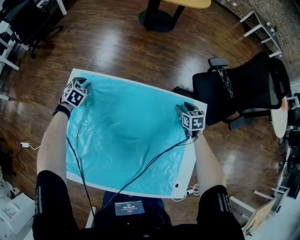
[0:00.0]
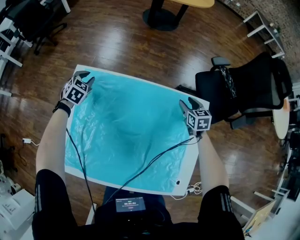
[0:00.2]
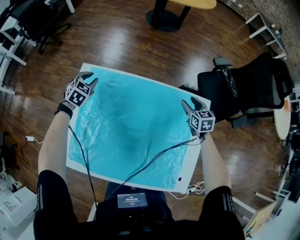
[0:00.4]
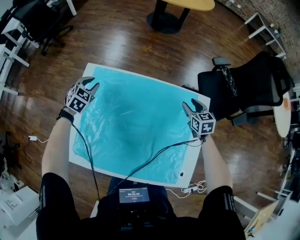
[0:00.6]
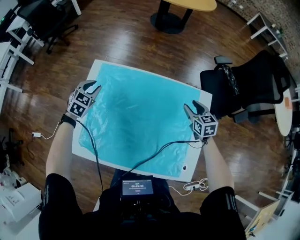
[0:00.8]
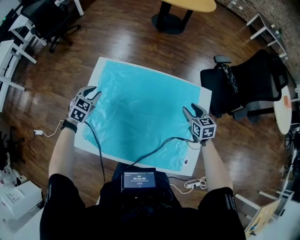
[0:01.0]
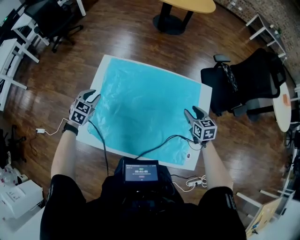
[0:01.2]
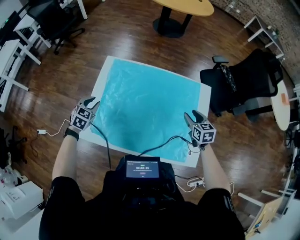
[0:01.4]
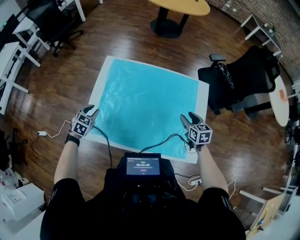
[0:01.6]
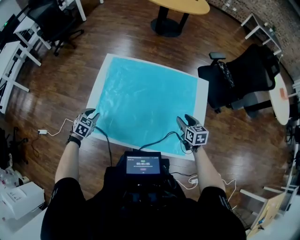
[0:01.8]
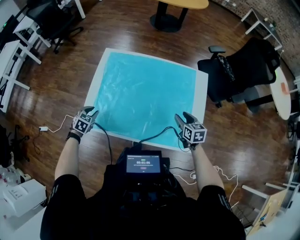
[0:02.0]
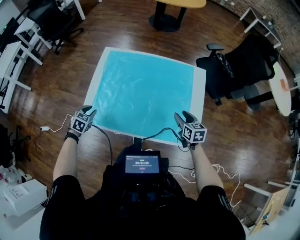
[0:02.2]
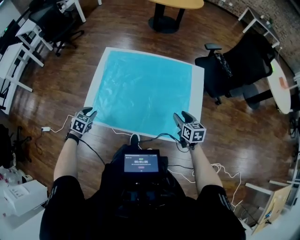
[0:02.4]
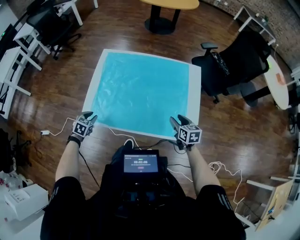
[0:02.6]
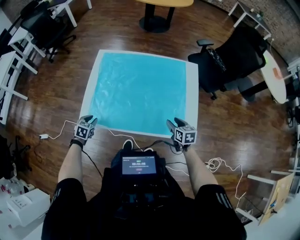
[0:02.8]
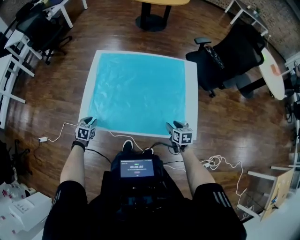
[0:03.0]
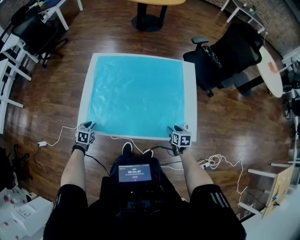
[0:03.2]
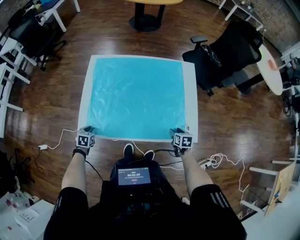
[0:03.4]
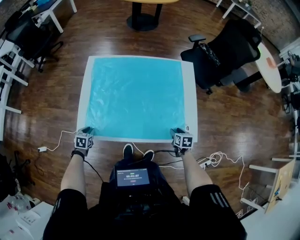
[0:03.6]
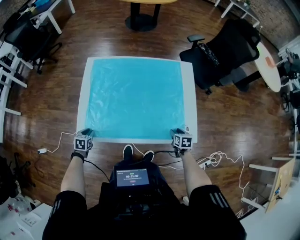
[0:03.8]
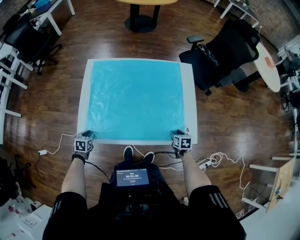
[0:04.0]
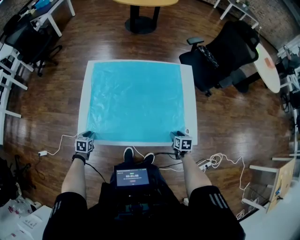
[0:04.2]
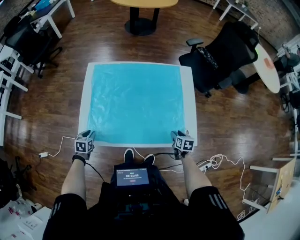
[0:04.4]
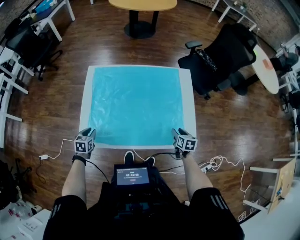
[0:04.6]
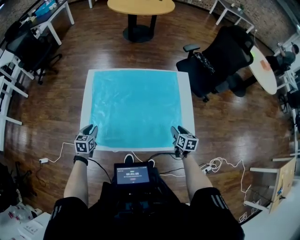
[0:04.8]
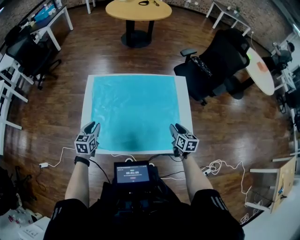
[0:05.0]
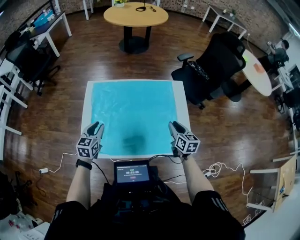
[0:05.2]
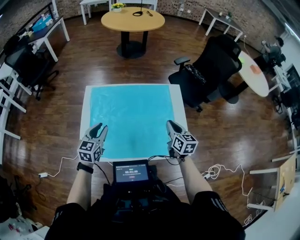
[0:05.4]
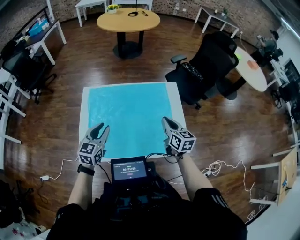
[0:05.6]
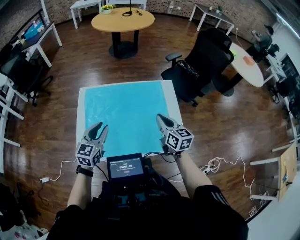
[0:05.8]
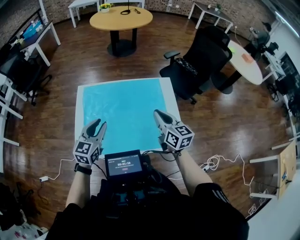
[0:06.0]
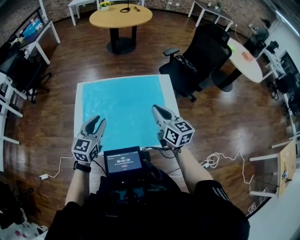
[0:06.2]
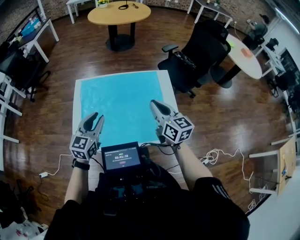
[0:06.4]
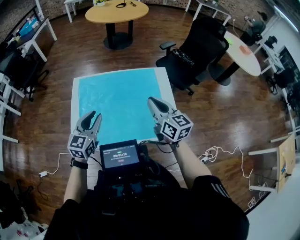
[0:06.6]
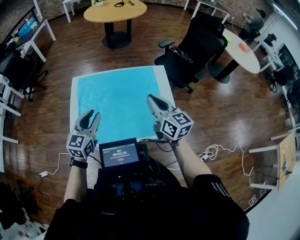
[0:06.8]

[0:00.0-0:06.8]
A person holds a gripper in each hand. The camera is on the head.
0:00.0 to 0:01.4: Both grippers travel together backward and upward, approximately 30 cm.
0:01.4 to 0:02.8: The right gripper travels backward by some 20 cm; the left gripper goes approximately 20 cm backward and downward.
0:02.8 to 0:04.0: The right gripper heads downward and to the right, covering about 10 cm, and turns by about 20 degrees, while the left gripper is displaced downward by roughly 5 cm.
0:04.0 to 0:05.4: The left gripper shifts roughly 30 cm upward, to the right and forward, and angles its fingers upward, by roughly 40 degrees; the right gripper moves upward, roughly 30 cm, points its fingers about 40 degrees further upward, and closes up.
0:05.4 to 0:06.8: The left gripper shifts approximately 10 cm upward, to the right and backward, while the right gripper heads upward, covering some 15 cm.

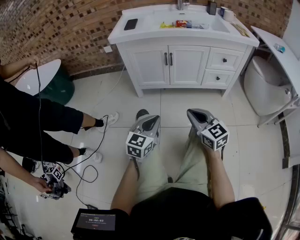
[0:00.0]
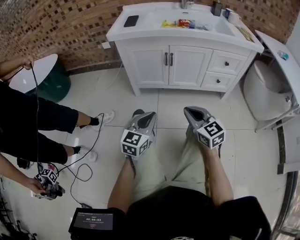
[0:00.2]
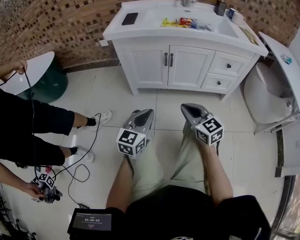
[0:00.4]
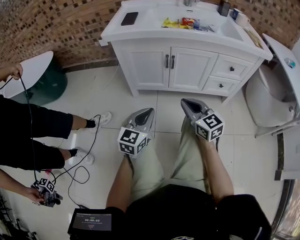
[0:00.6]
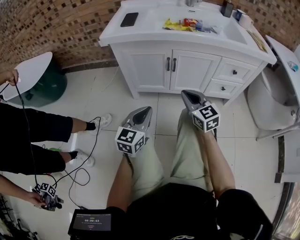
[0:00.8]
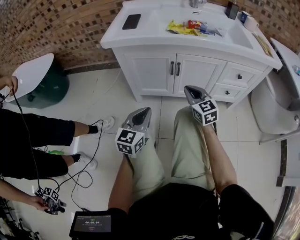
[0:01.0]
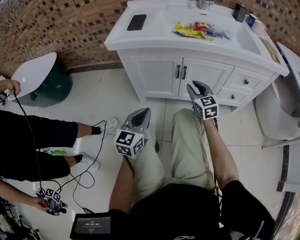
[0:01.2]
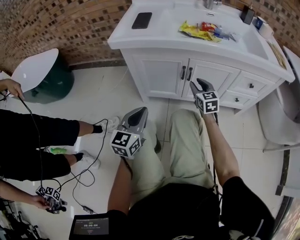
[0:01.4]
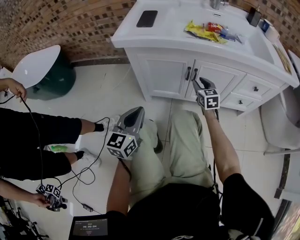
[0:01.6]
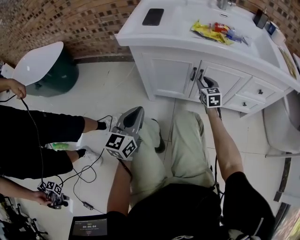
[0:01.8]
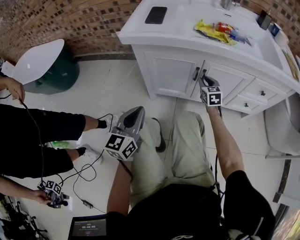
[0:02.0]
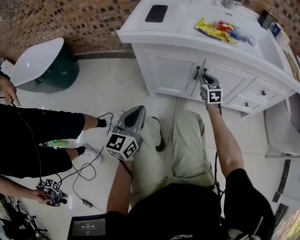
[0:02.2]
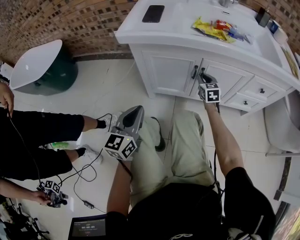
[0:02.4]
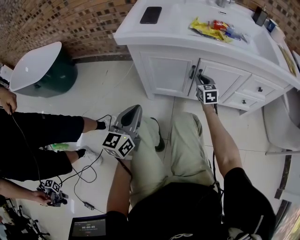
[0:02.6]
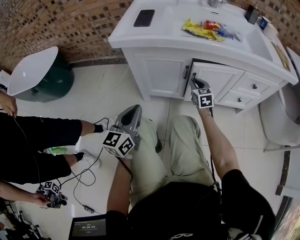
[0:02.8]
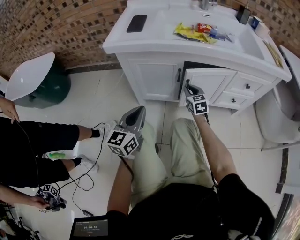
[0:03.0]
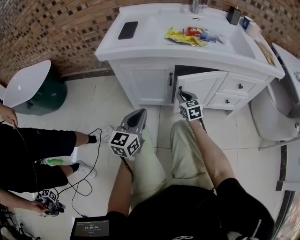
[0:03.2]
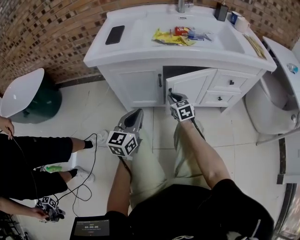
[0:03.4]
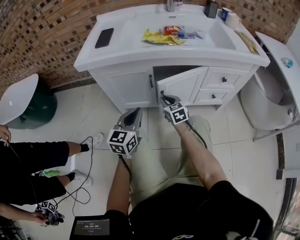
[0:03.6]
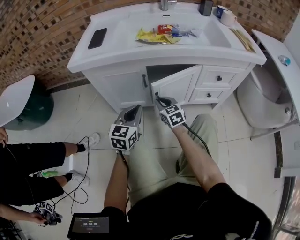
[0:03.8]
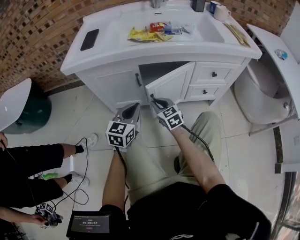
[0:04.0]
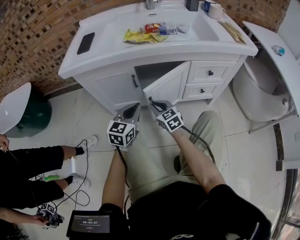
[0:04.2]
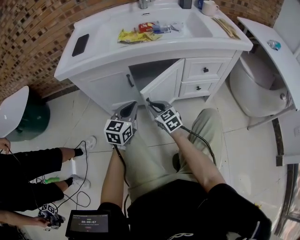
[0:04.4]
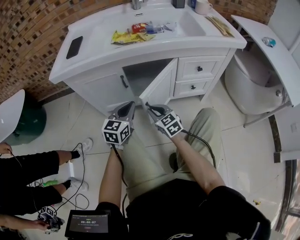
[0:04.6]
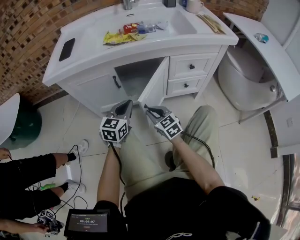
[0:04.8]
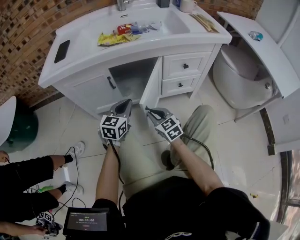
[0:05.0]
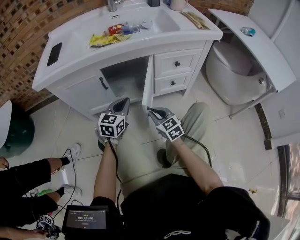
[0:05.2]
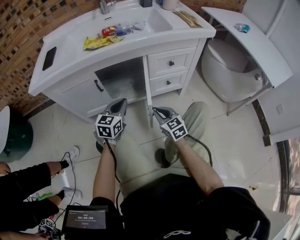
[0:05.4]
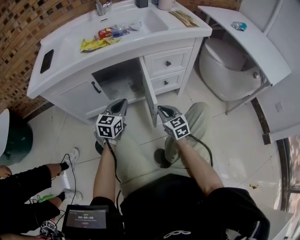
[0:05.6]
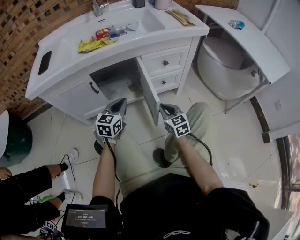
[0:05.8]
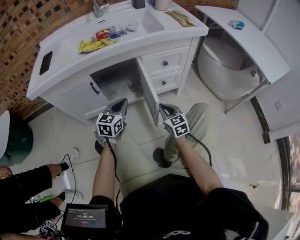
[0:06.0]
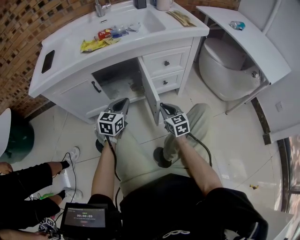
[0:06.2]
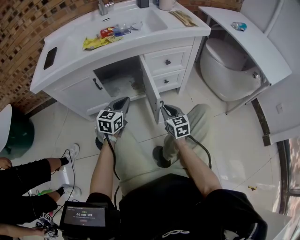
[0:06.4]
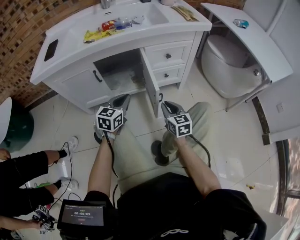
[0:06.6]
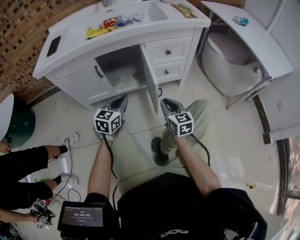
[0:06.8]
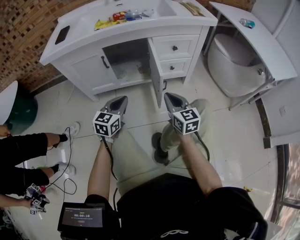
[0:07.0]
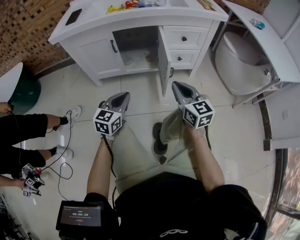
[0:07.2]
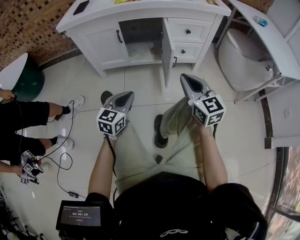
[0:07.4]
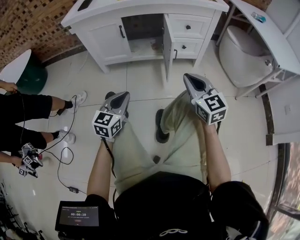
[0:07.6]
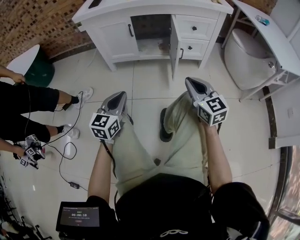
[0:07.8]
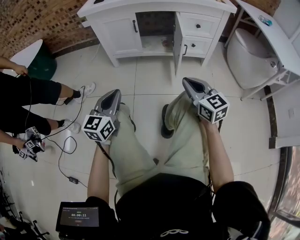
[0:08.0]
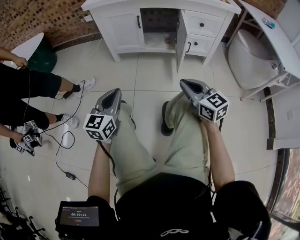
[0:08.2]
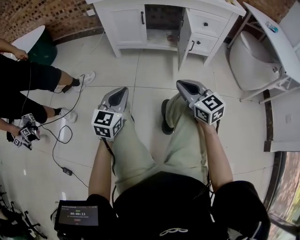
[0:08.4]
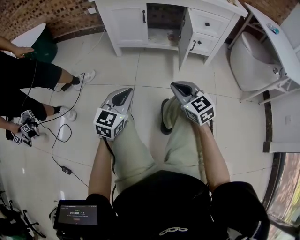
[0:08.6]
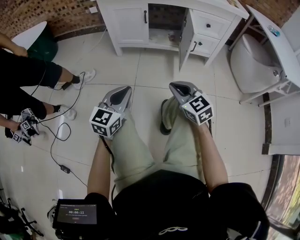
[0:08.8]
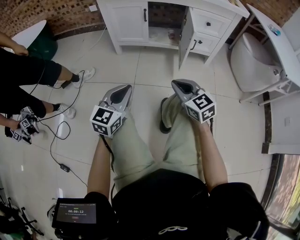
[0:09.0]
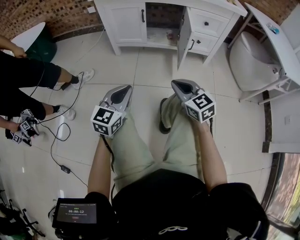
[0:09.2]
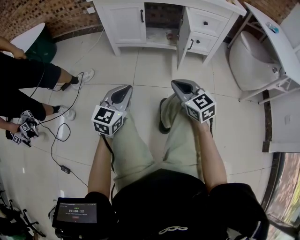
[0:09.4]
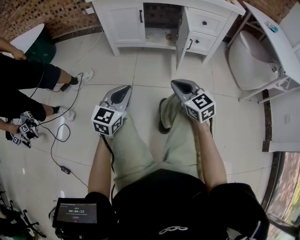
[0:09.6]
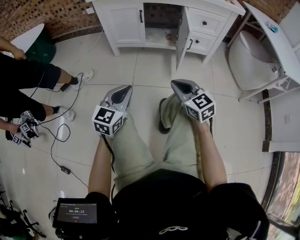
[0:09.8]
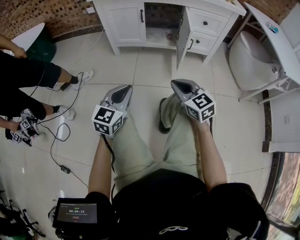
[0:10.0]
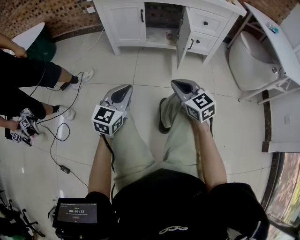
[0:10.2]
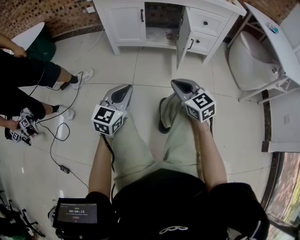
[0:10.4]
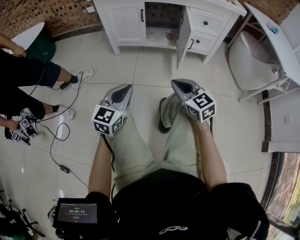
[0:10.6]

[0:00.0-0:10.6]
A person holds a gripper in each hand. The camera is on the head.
0:00.0 to 0:01.6: The right gripper goes about 40 cm forward, and opens, while the left gripper heads forward and to the left, covering approximately 25 cm.
0:01.6 to 0:03.0: The right gripper closes up.
0:03.0 to 0:04.6: The right gripper moves backward and to the right, about 15 cm; the left gripper goes roughly 20 cm to the right, and swivels roughly 20 degrees.
0:04.6 to 0:06.0: The right gripper travels to the right by approximately 20 cm, and rotates roughly 20 degrees, while the left gripper shifts some 10 cm to the right.
0:06.0 to 0:07.6: The left gripper shifts about 35 cm backward; the right gripper is displaced backward and upward by approximately 30 cm, and turns by some 20 degrees.
0:07.6 to 0:09.0: The right gripper shifts roughly 15 cm to the left, downward and backward, and swivels some 20 degrees; the left gripper goes roughly 10 cm backward and to the left.
0:09.0 to 0:10.6: The two grippers keep their place.

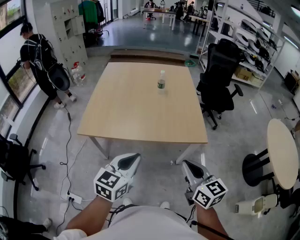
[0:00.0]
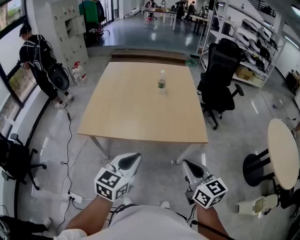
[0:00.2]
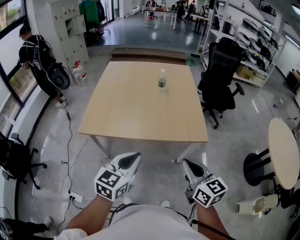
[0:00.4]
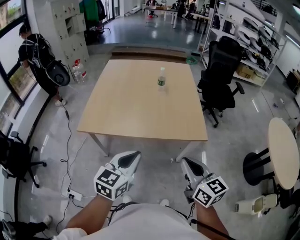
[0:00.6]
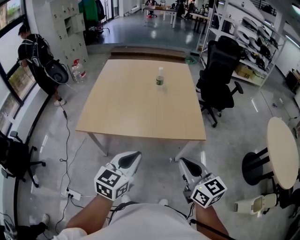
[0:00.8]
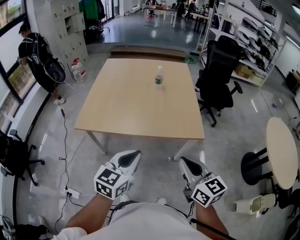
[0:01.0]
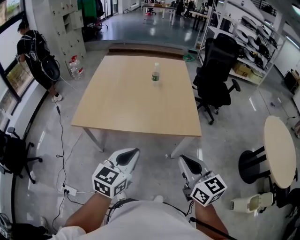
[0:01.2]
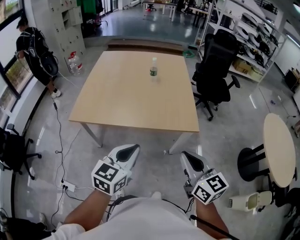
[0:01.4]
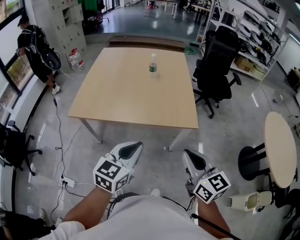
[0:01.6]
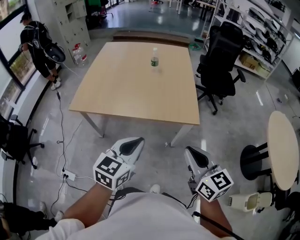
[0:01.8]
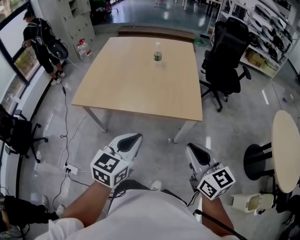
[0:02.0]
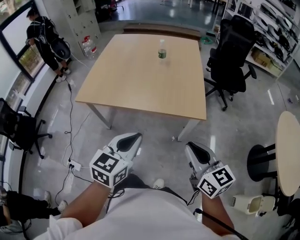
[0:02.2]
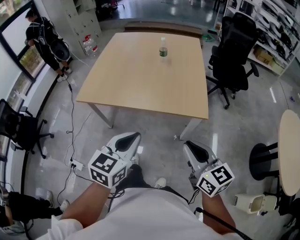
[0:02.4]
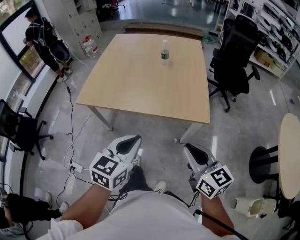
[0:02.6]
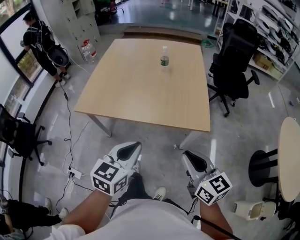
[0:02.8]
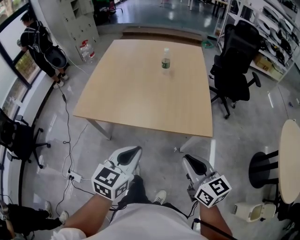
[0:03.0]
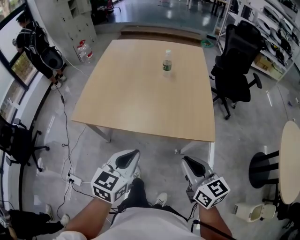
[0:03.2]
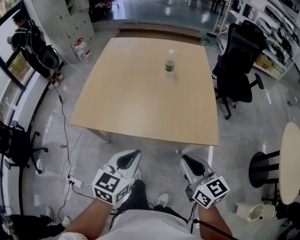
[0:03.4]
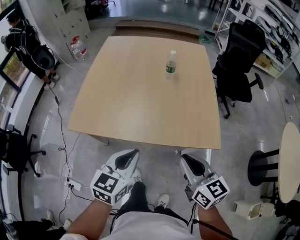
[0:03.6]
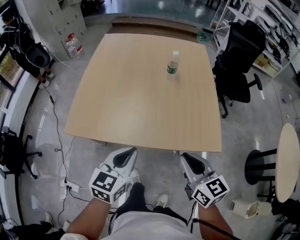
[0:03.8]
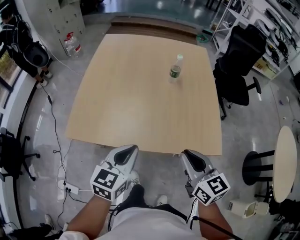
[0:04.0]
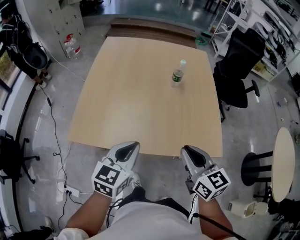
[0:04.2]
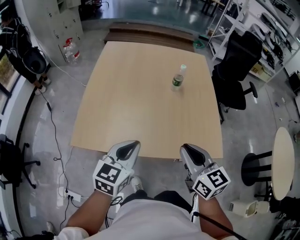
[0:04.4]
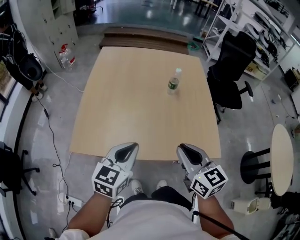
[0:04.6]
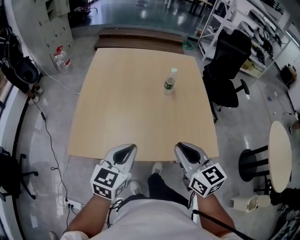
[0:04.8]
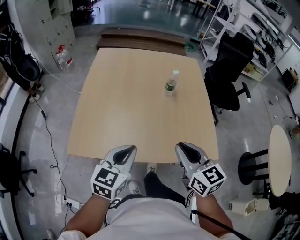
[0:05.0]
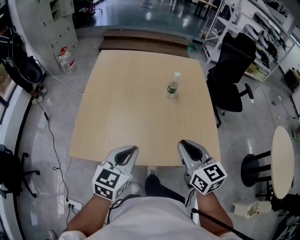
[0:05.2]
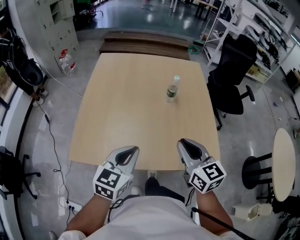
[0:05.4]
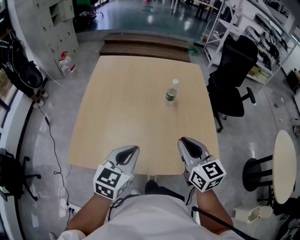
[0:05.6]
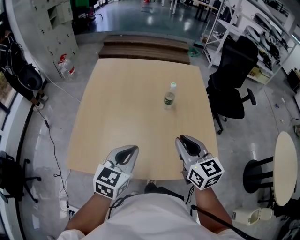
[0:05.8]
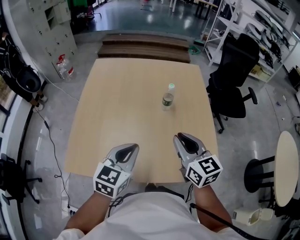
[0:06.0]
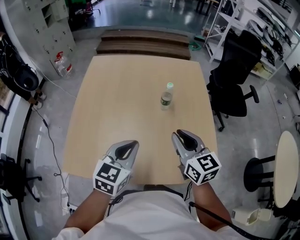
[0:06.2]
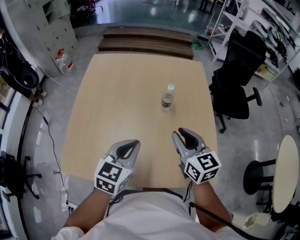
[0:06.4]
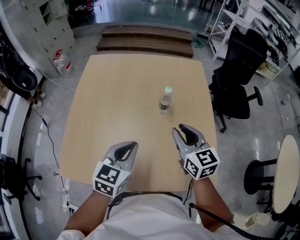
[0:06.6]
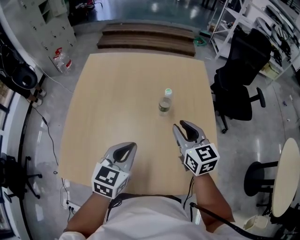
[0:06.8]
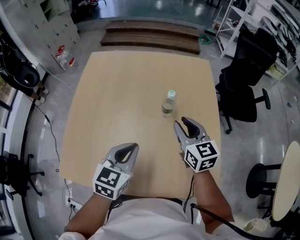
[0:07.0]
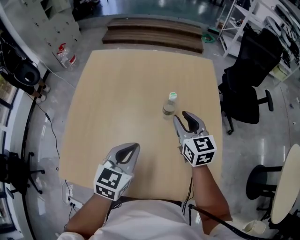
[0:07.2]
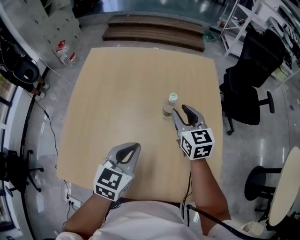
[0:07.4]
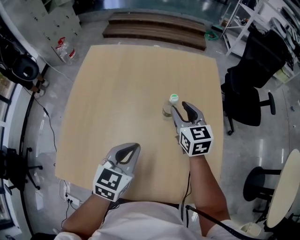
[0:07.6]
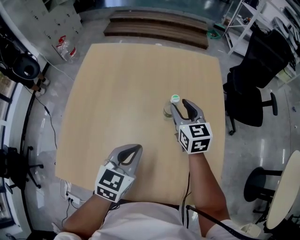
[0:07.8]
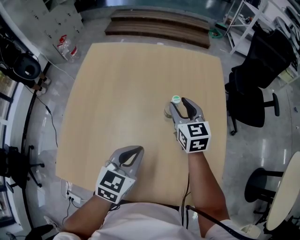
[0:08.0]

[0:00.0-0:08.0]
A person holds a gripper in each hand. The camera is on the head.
0:00.0 to 0:01.6: Both grippers move to the right, about 10 cm.
0:01.6 to 0:03.2: The right gripper shifts approximately 10 cm forward and downward, while the left gripper goes approximately 5 cm forward.
0:03.2 to 0:04.8: The grippers both shift forward and to the left by about 20 cm.
0:04.8 to 0:06.4: The two grippers go some 15 cm forward.
0:06.4 to 0:08.0: The left gripper shifts roughly 5 cm forward. Meanwhile the right gripper goes approximately 20 cm forward.
